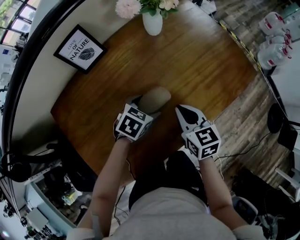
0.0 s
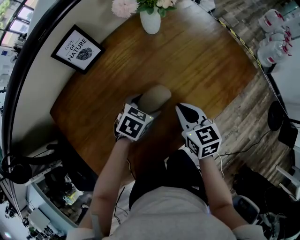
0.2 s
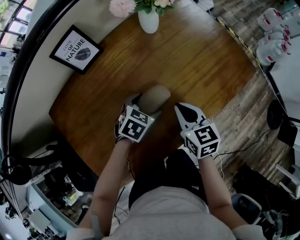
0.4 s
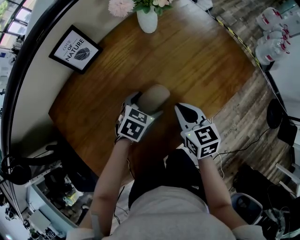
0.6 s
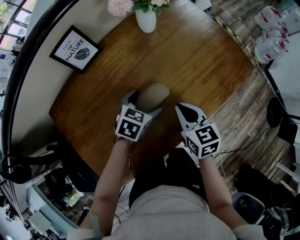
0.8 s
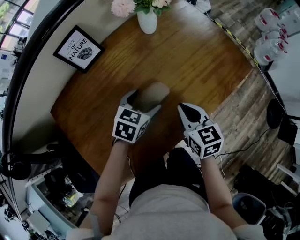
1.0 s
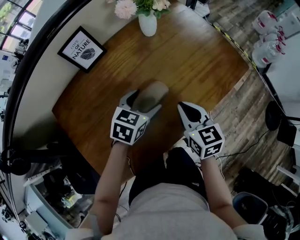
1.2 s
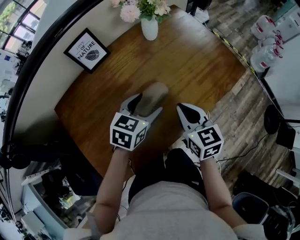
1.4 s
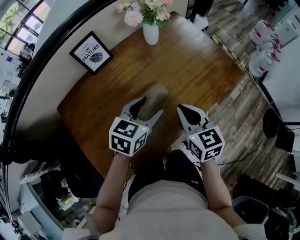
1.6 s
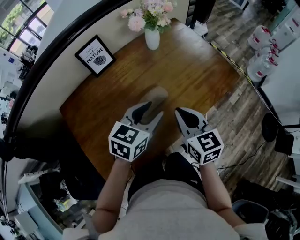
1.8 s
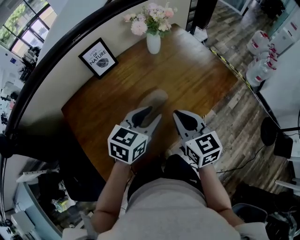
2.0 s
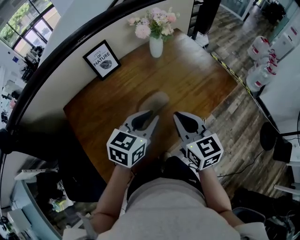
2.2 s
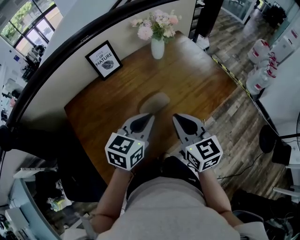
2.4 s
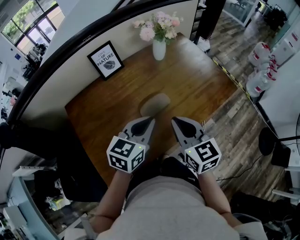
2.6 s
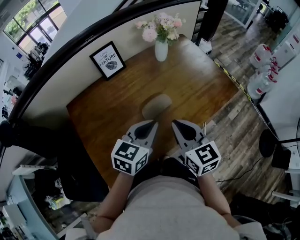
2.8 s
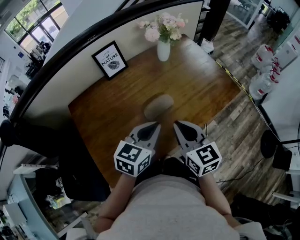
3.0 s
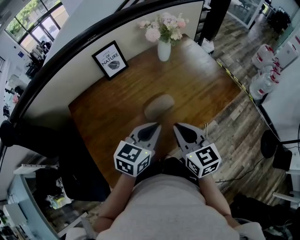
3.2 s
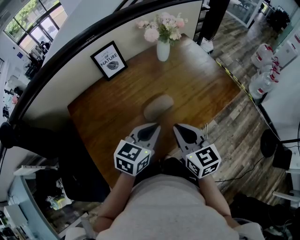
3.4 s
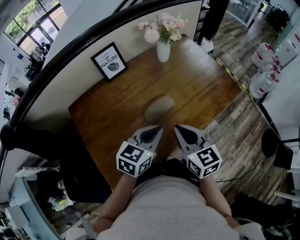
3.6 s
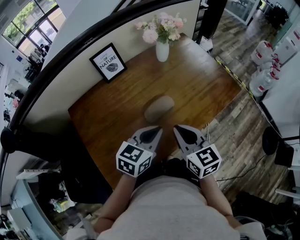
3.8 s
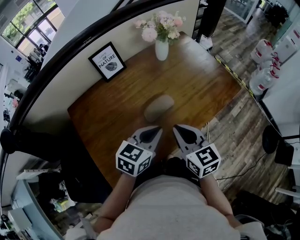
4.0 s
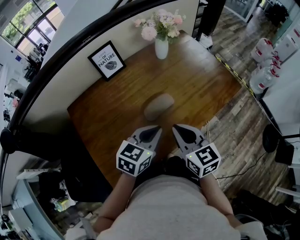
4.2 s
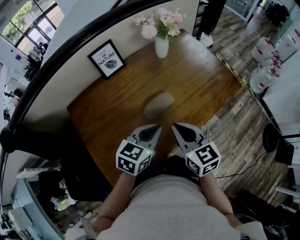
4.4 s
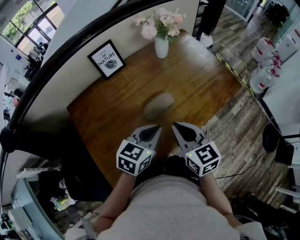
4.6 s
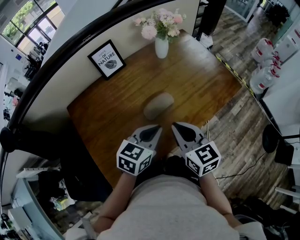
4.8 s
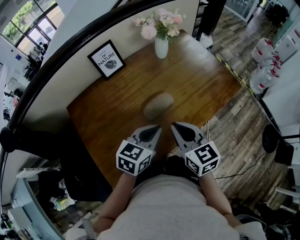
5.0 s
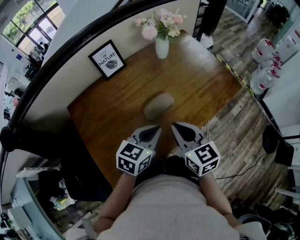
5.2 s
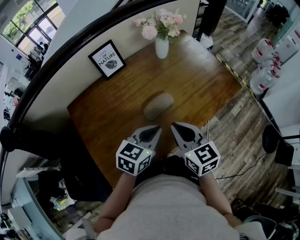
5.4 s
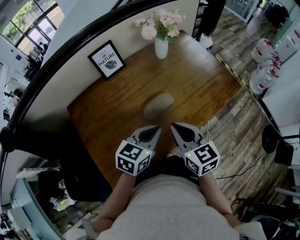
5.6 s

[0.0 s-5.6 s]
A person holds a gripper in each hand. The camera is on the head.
0.0 to 1.4 s: The left gripper heads upward, covering about 10 cm, and turns by about 20 degrees. The right gripper travels upward by some 5 cm.
1.4 to 2.8 s: The left gripper goes some 15 cm backward and upward, and closes. Meanwhile the right gripper goes approximately 10 cm upward and backward.
2.8 to 4.2 s: The grippers make only small movements.
4.2 to 5.6 s: Neither gripper changes place.

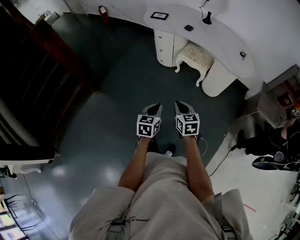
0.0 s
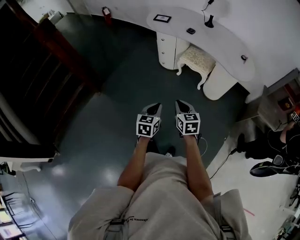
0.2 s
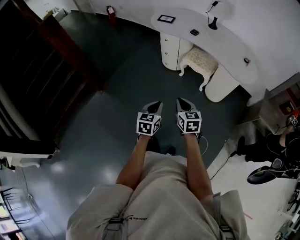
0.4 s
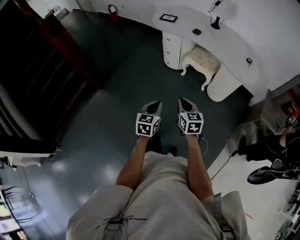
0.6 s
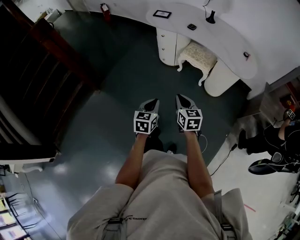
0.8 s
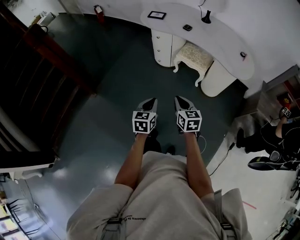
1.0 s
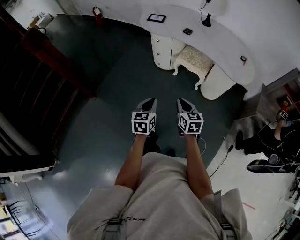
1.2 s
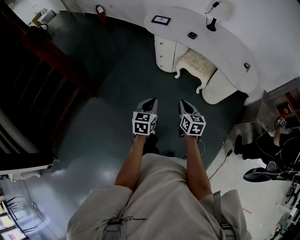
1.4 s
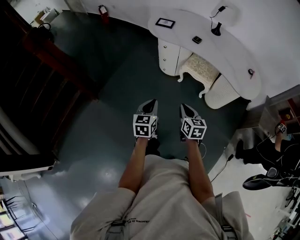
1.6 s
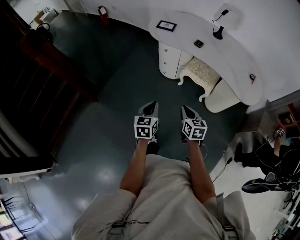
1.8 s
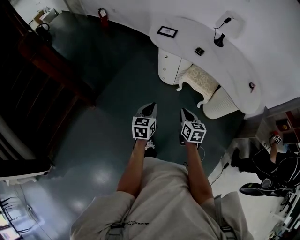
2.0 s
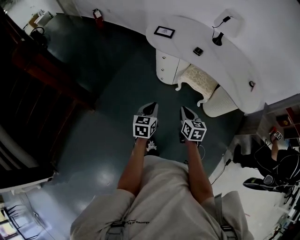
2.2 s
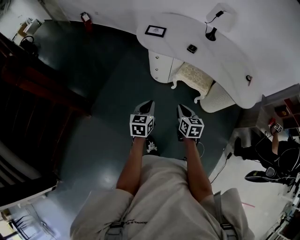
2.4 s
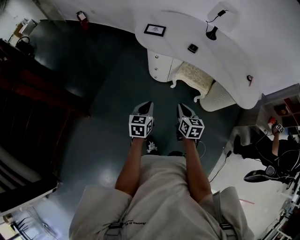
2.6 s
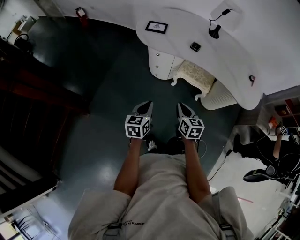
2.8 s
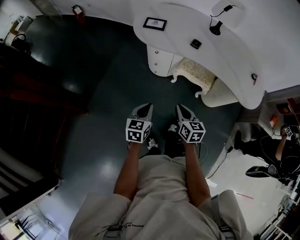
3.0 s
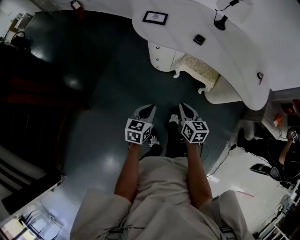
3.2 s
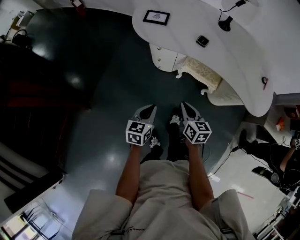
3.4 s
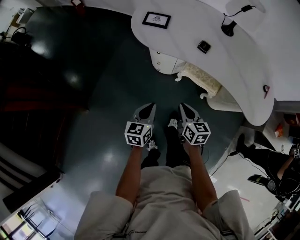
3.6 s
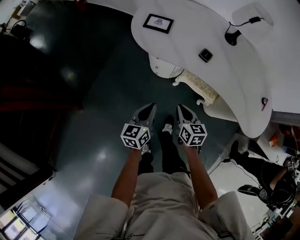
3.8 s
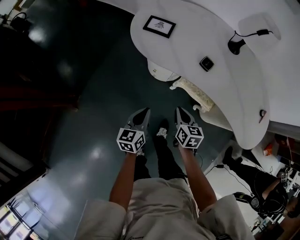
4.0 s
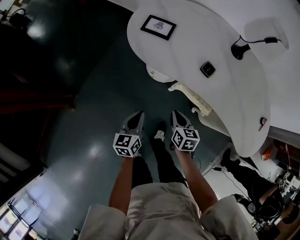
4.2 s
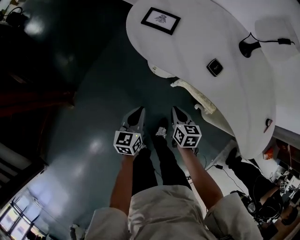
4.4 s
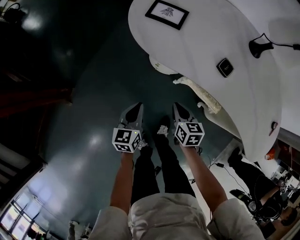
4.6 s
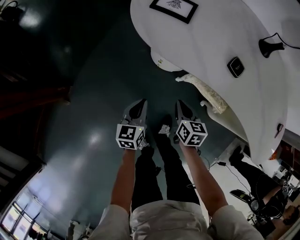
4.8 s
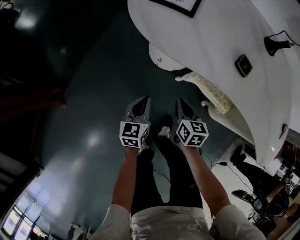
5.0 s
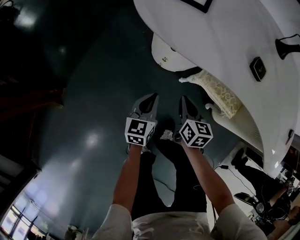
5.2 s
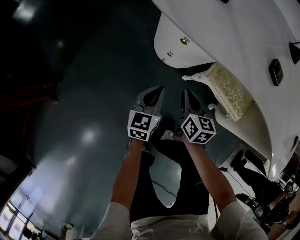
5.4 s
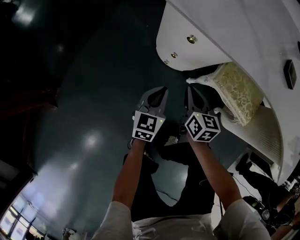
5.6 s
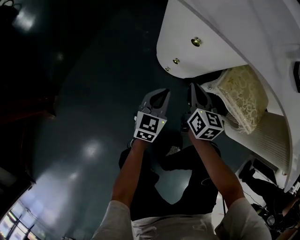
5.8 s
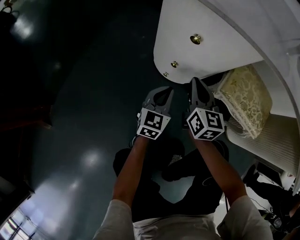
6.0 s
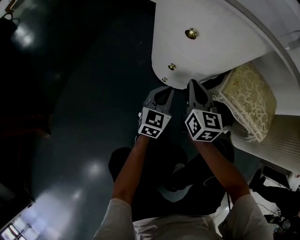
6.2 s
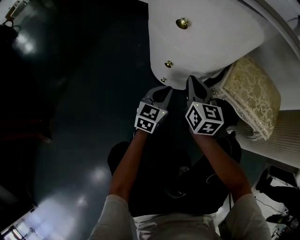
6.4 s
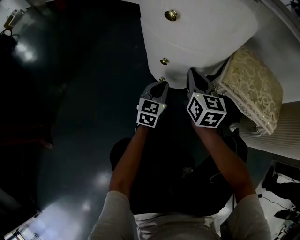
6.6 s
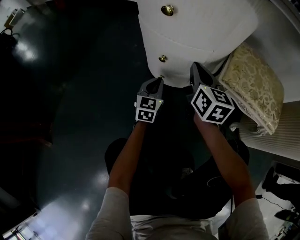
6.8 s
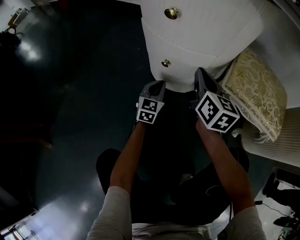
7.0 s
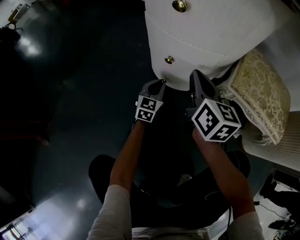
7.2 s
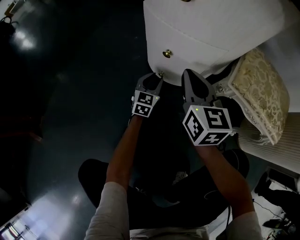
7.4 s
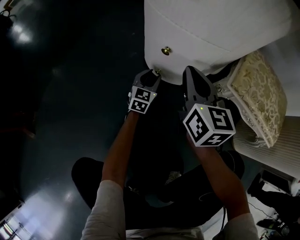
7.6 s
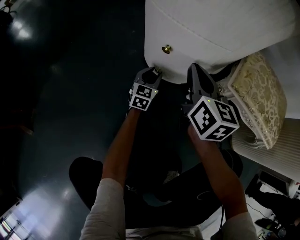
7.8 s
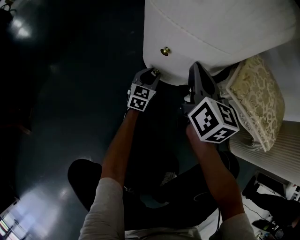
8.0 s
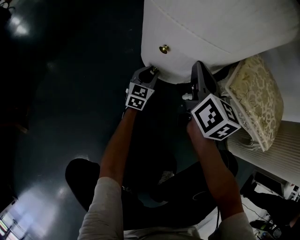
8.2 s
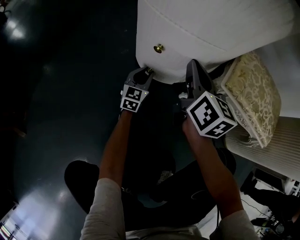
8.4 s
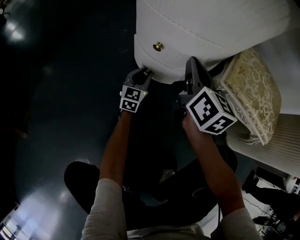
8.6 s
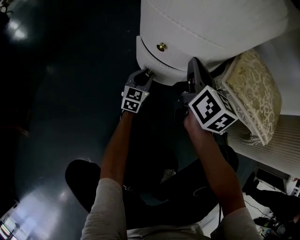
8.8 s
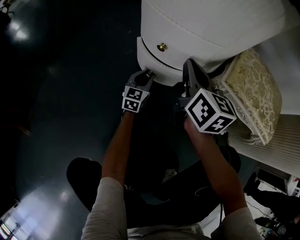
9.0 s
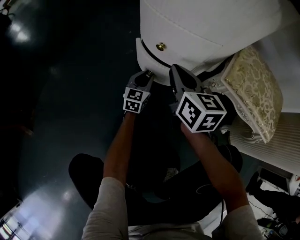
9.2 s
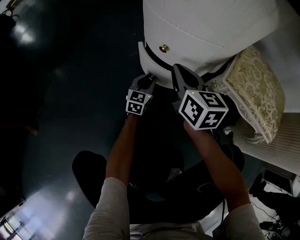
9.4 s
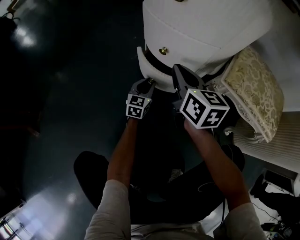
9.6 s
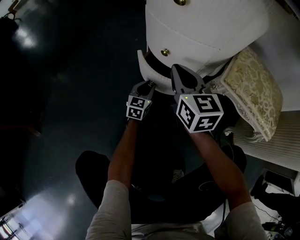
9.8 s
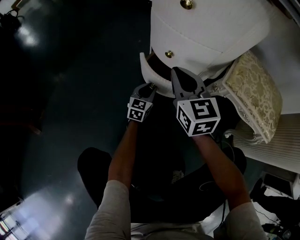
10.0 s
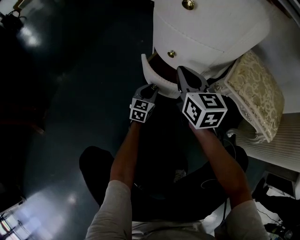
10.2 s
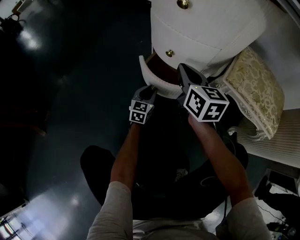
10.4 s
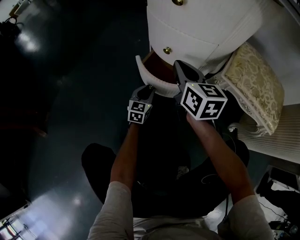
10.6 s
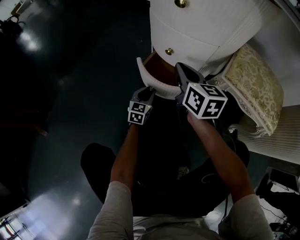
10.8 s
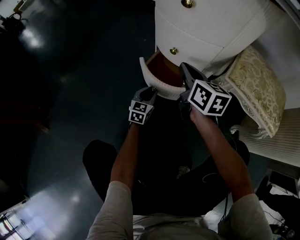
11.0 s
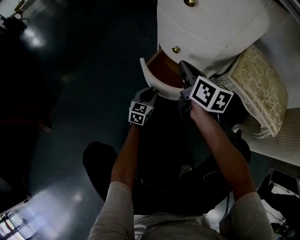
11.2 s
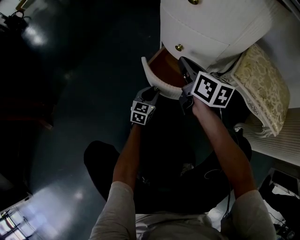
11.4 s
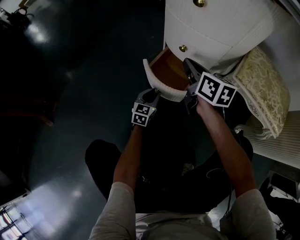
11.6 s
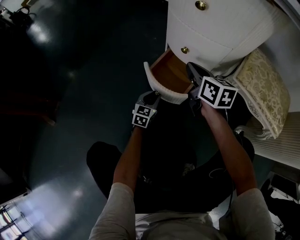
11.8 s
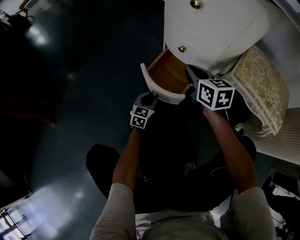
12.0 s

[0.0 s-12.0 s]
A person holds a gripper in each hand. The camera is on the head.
0.0 to 1.6 s: The right gripper heads forward, covering approximately 15 cm. Meanwhile the left gripper is displaced forward and to the left by some 20 cm.
1.6 to 3.0 s: Both grippers travel together forward, approximately 20 cm.
3.0 to 4.4 s: Both grippers move forward and downward, roughly 25 cm.
4.4 to 6.0 s: The right gripper moves downward and forward, approximately 30 cm, and turns by approximately 30 degrees. The left gripper goes roughly 40 cm downward, and changes its angle by approximately 20 degrees.
6.0 to 7.6 s: The right gripper heads downward, covering about 5 cm, while the left gripper moves downward and forward, approximately 25 cm, and opens up.
7.6 to 9.0 s: The grippers move only a little.
9.0 to 10.4 s: The left gripper goes approximately 5 cm backward.
10.4 to 12.0 s: The left gripper moves backward, some 5 cm.

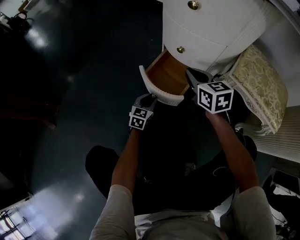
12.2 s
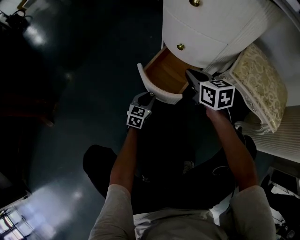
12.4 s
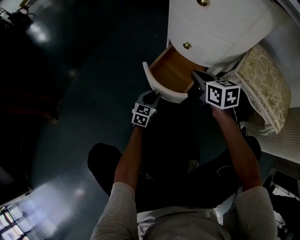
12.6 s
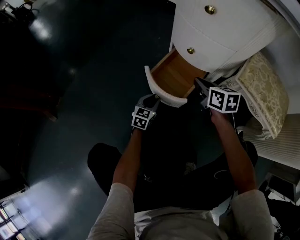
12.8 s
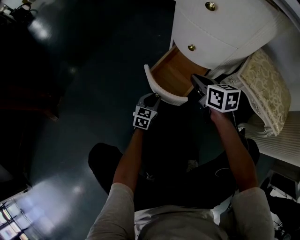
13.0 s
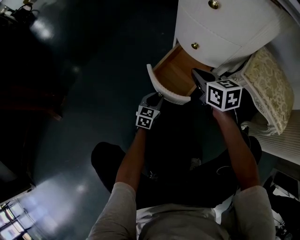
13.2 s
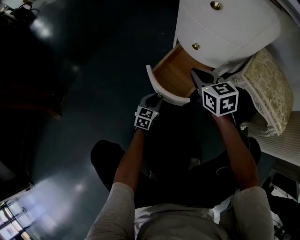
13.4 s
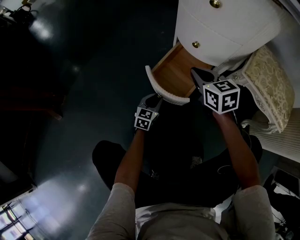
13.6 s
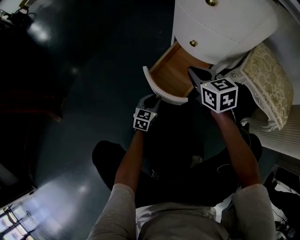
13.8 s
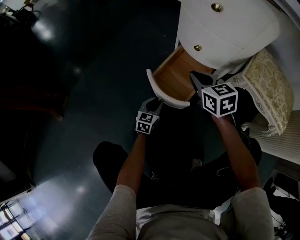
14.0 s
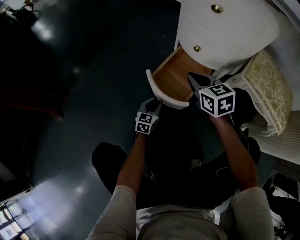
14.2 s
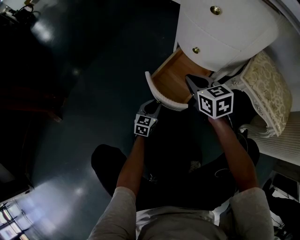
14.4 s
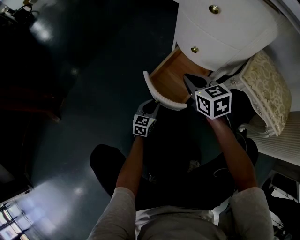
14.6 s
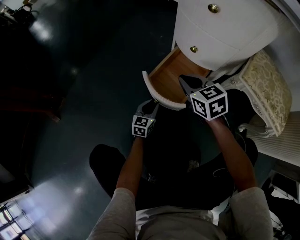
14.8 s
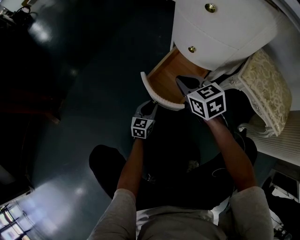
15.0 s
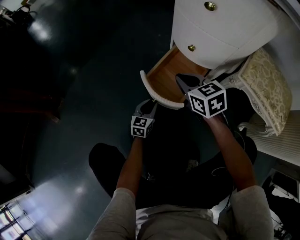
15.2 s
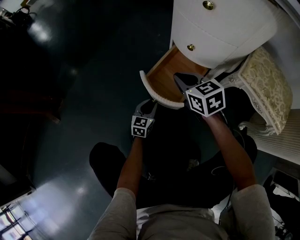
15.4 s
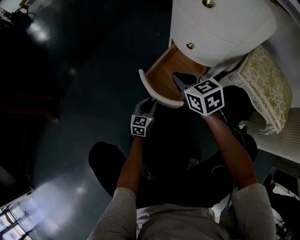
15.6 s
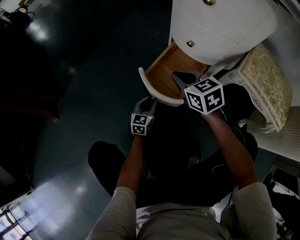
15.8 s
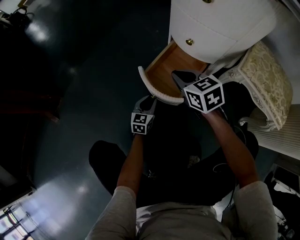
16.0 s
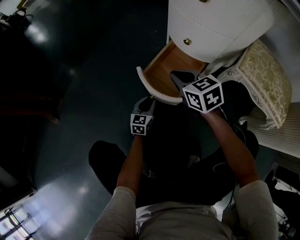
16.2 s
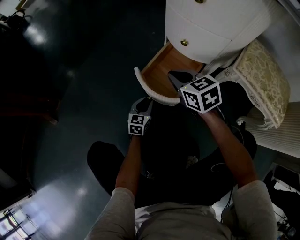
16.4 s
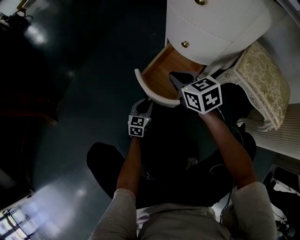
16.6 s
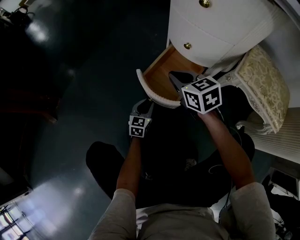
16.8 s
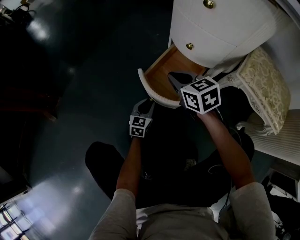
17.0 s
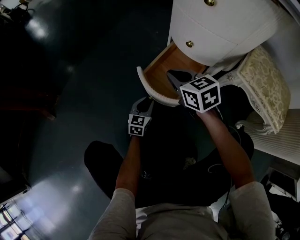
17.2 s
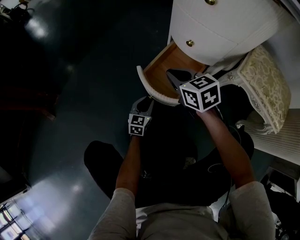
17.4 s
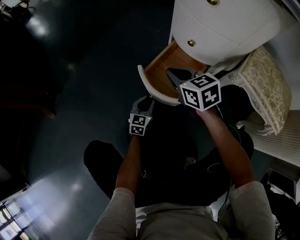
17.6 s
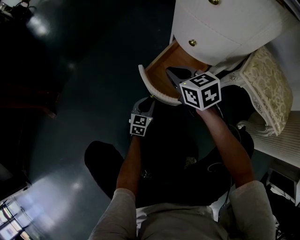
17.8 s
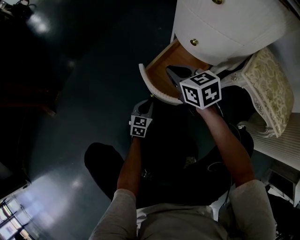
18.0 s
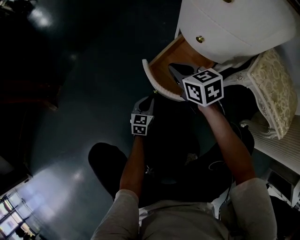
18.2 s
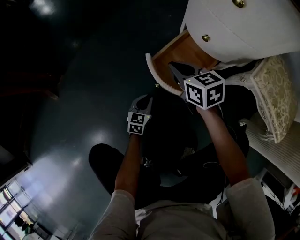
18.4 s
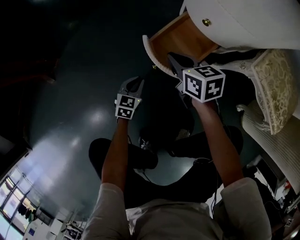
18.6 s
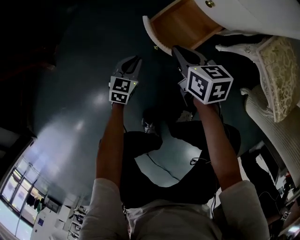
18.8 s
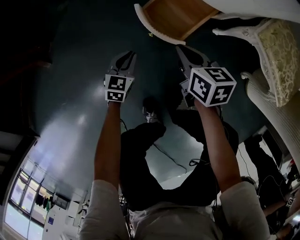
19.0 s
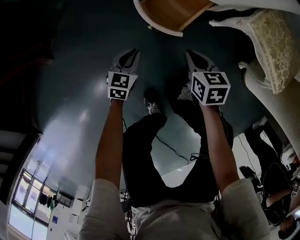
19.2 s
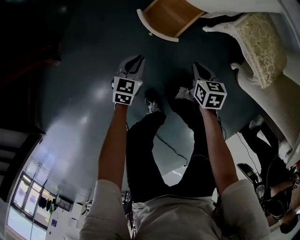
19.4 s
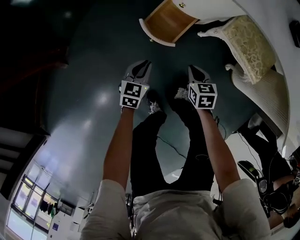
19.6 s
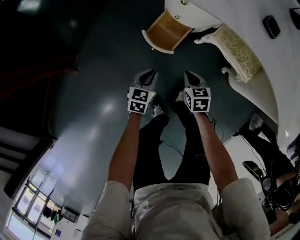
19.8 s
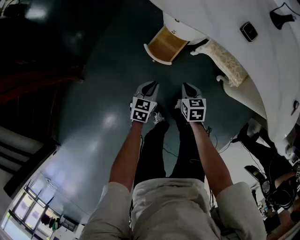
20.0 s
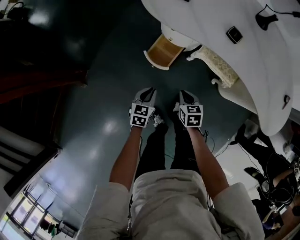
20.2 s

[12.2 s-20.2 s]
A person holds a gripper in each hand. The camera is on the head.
12.2 to 13.8 s: The left gripper ends up about 5 cm from where it was. Meanwhile the right gripper moves to the left, some 5 cm.
13.8 to 17.0 s: The grippers move only a little.
17.0 to 18.6 s: The left gripper travels to the left by about 5 cm.
18.6 to 20.2 s: The left gripper shifts approximately 50 cm upward. The right gripper shifts some 40 cm upward, backward and to the right, and rotates roughly 30 degrees.
